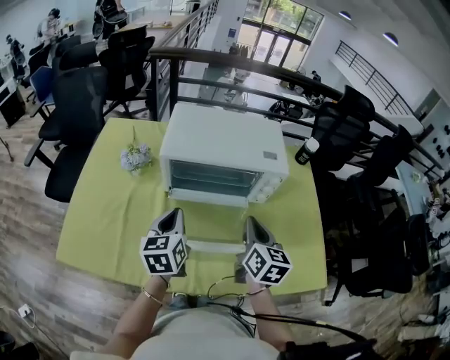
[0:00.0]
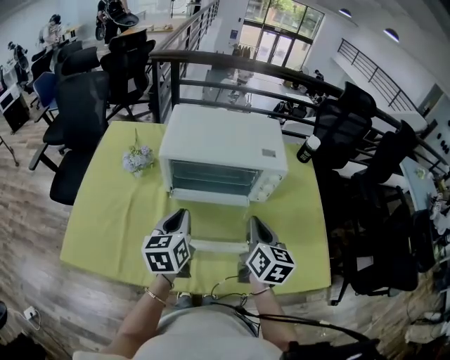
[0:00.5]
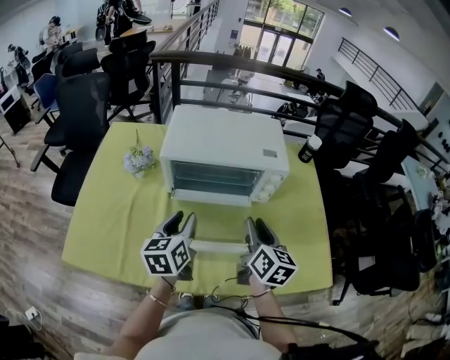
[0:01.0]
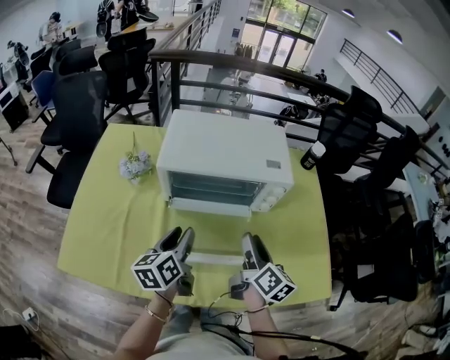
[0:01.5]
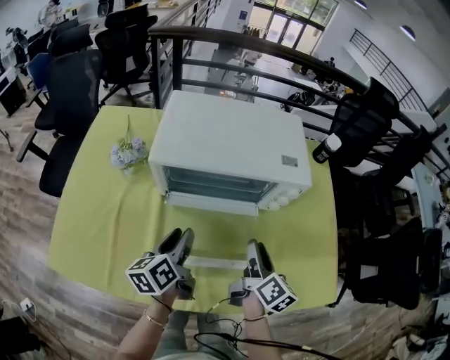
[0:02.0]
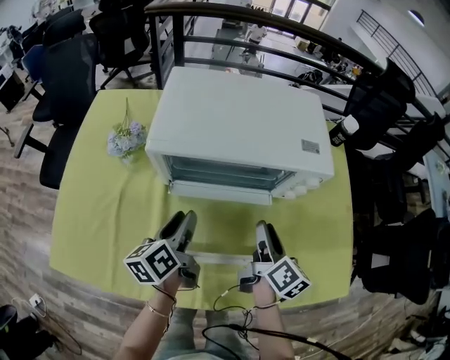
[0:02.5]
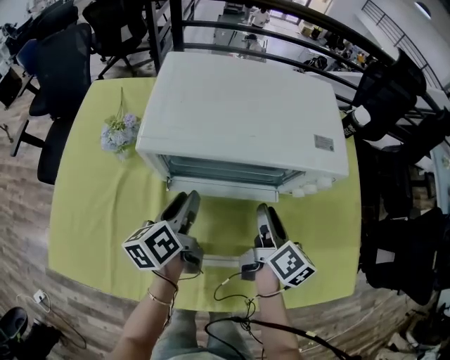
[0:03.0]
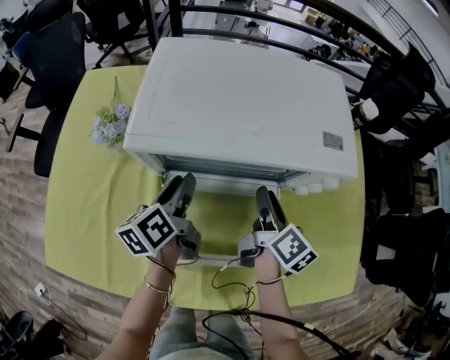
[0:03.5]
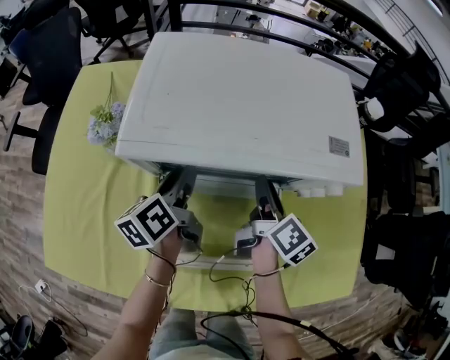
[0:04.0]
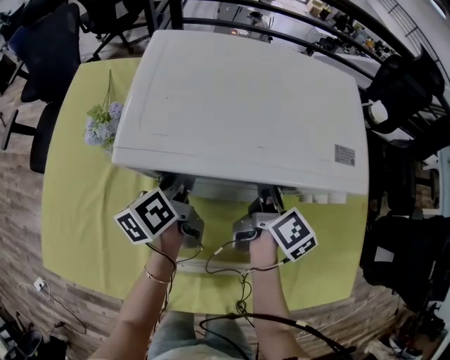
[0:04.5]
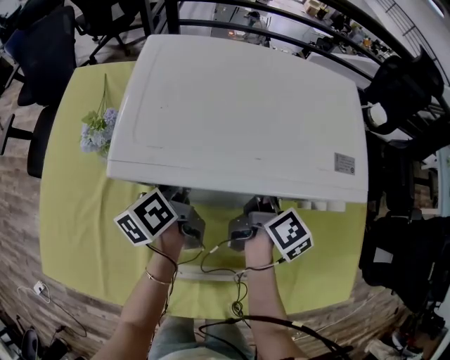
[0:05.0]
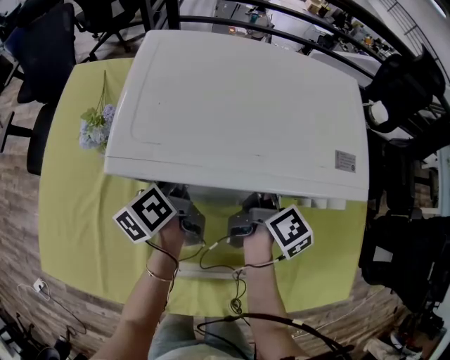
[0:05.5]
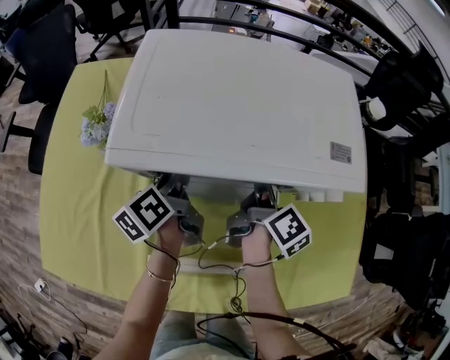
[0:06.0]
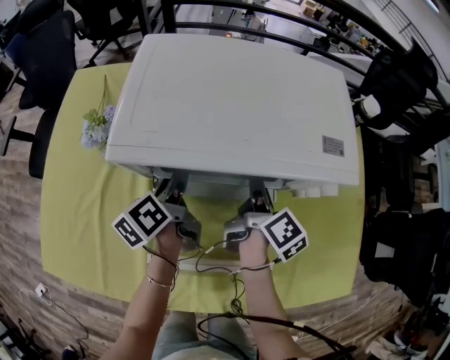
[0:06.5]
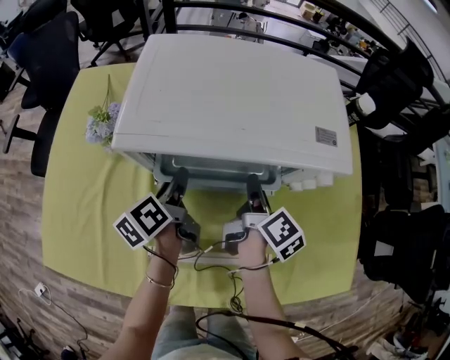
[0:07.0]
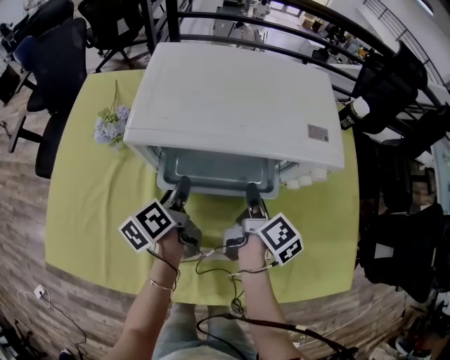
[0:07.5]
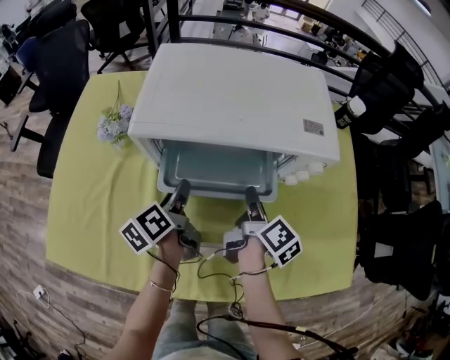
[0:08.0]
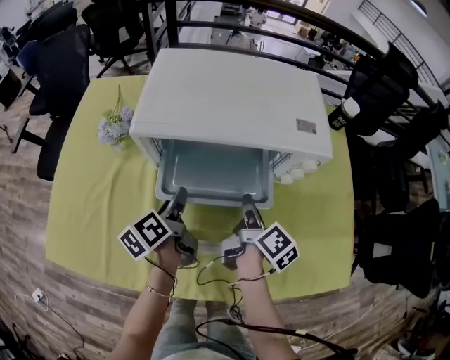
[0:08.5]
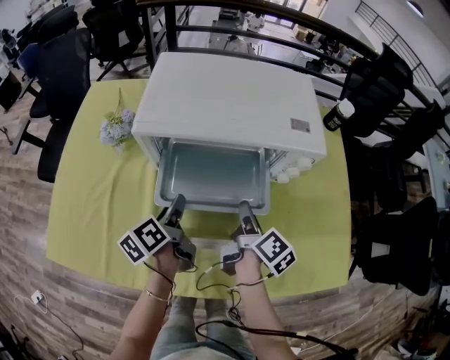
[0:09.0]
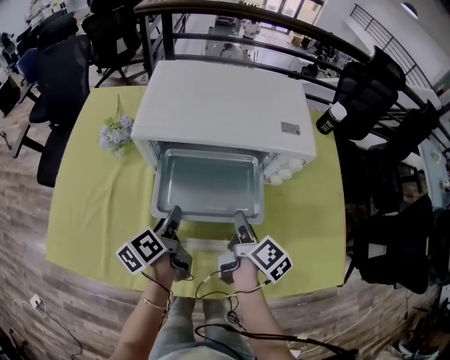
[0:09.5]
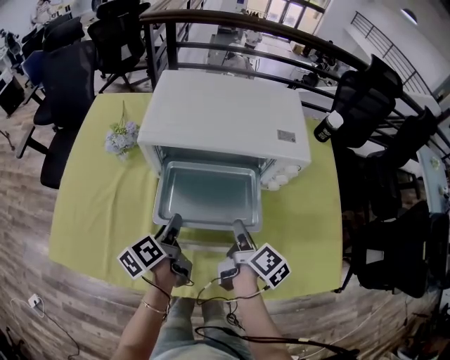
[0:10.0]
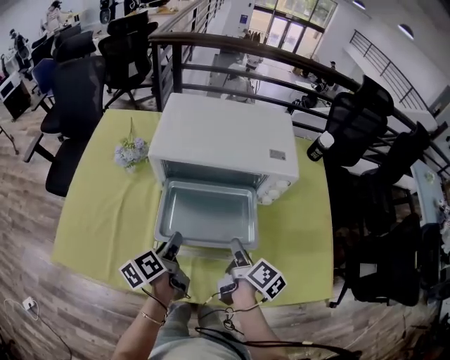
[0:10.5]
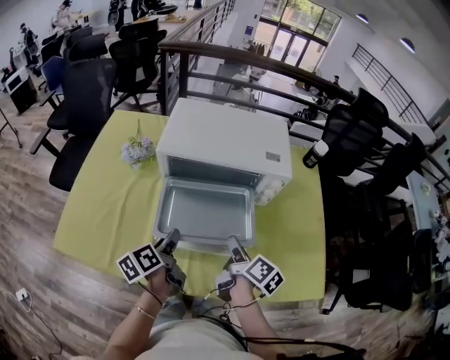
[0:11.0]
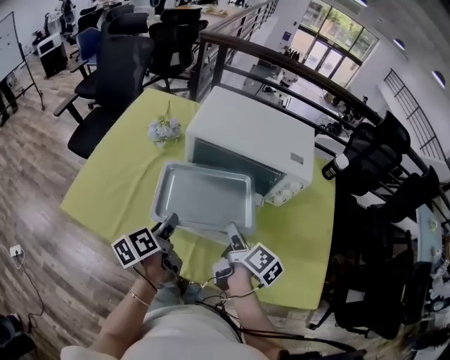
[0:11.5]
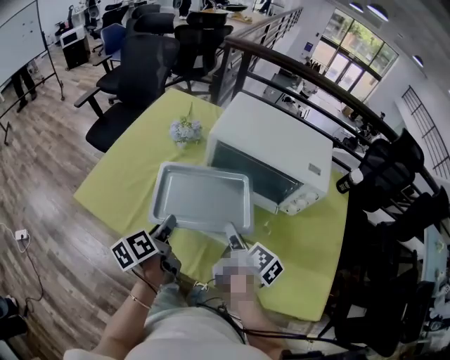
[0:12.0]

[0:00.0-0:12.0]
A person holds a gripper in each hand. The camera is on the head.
0:00.0 to 0:02.0: Both grippers travel together downward, about 10 cm. The right gripper swivels some 30 degrees, and opens its fingers, while the left gripper swivels roughly 30 degrees, and opens.
0:02.0 to 0:04.0: Both grippers move forward, about 15 cm.
0:04.0 to 0:06.0: The grippers stay close to where they were, moving slightly.
0:06.0 to 0:08.0: The two grippers go some 10 cm backward.
0:08.0 to 0:10.0: The grippers both shift backward by roughly 10 cm.
0:10.0 to 0:12.0: The right gripper moves to the left, upward and backward, some 15 cm, and turns by roughly 30 degrees; the left gripper is displaced backward, to the left and upward by some 20 cm.

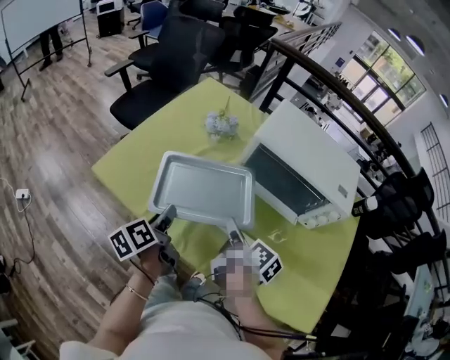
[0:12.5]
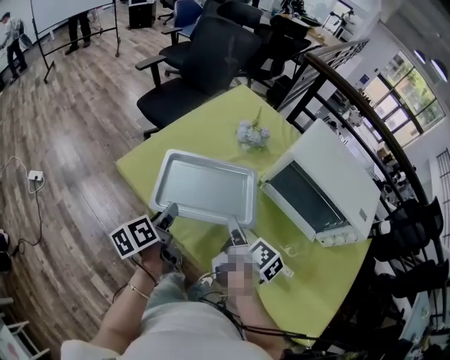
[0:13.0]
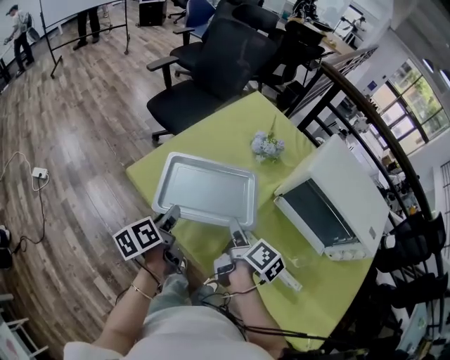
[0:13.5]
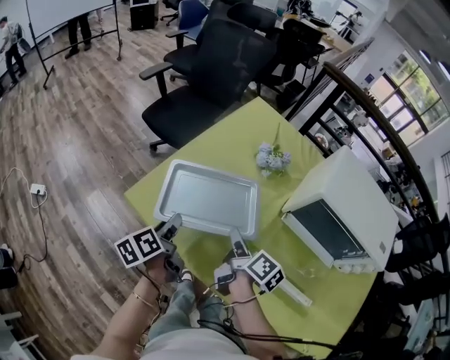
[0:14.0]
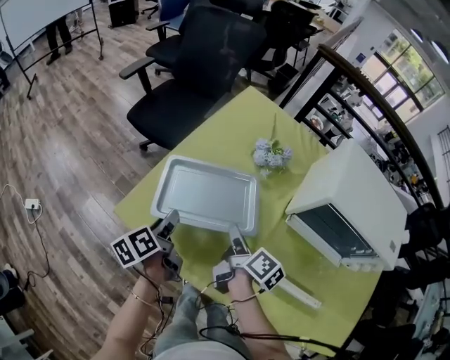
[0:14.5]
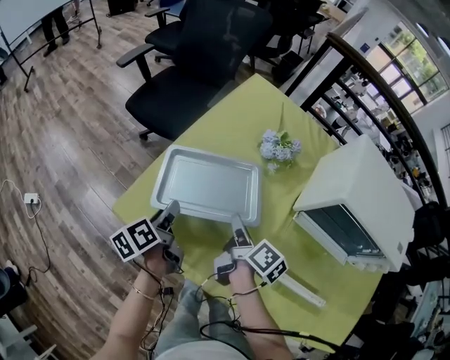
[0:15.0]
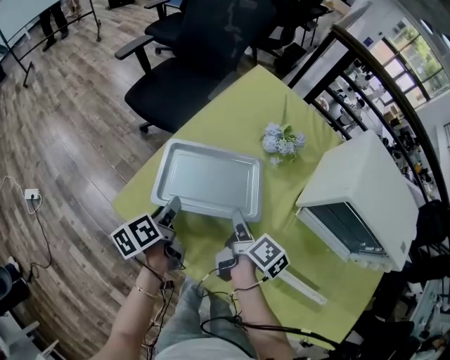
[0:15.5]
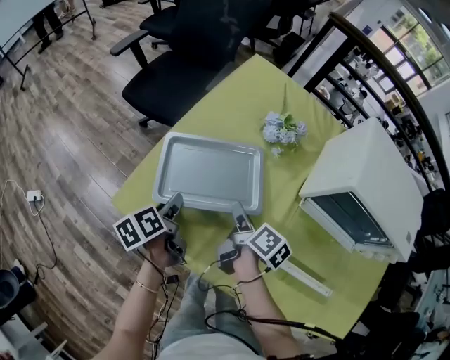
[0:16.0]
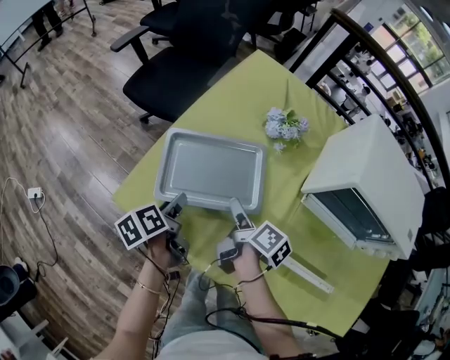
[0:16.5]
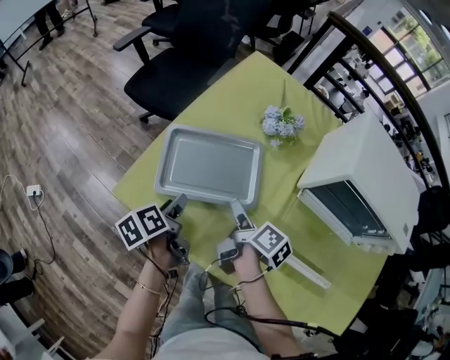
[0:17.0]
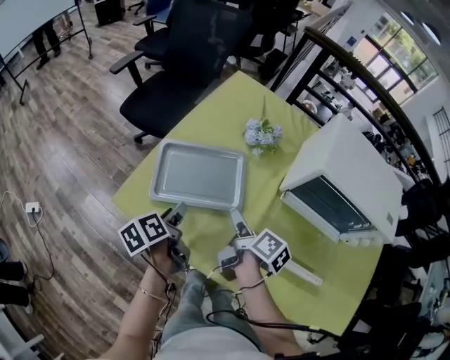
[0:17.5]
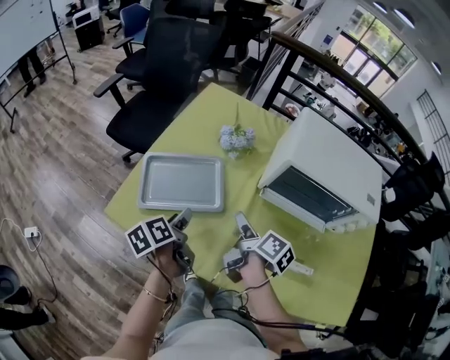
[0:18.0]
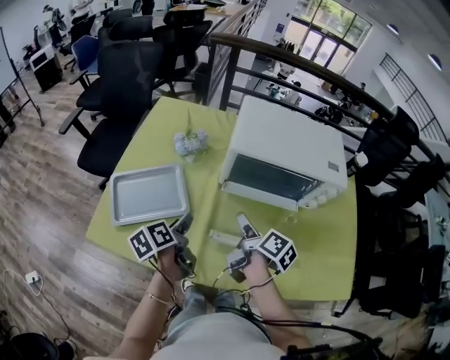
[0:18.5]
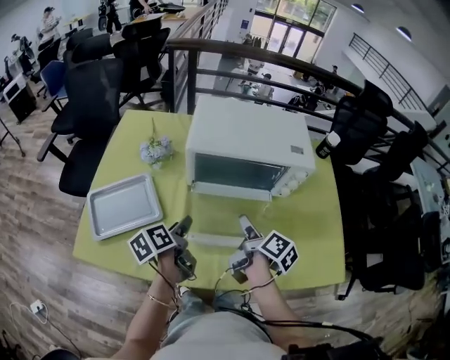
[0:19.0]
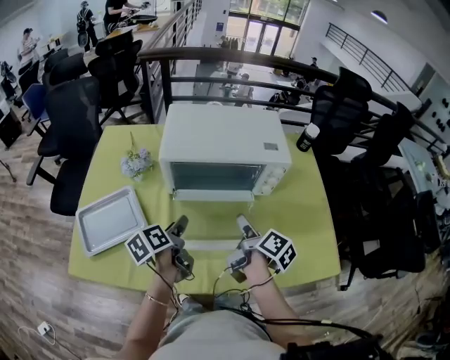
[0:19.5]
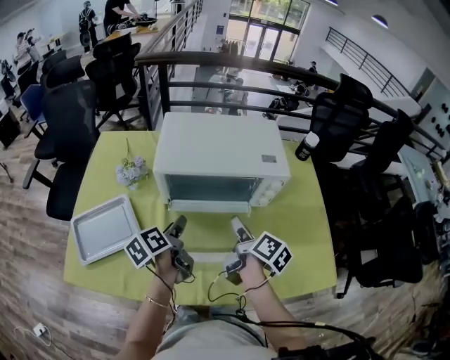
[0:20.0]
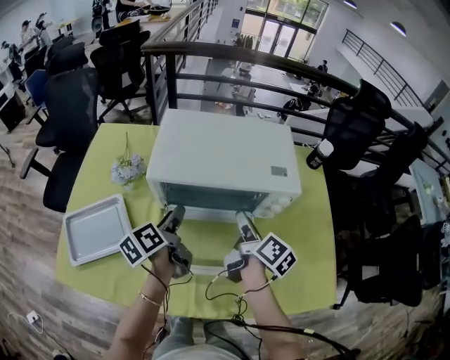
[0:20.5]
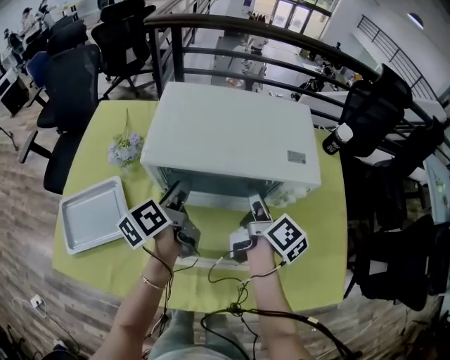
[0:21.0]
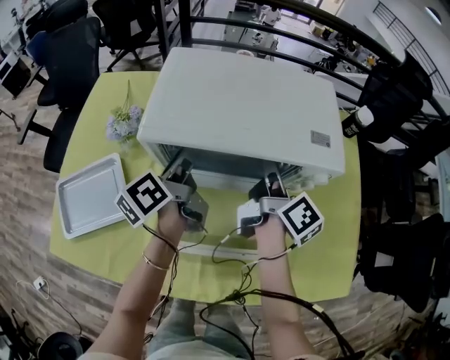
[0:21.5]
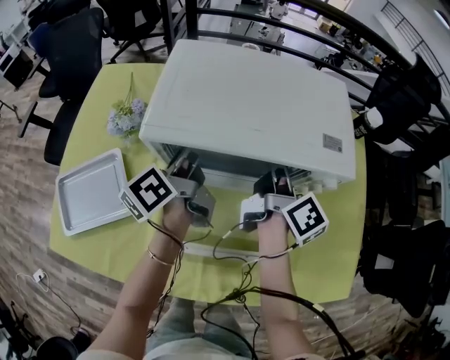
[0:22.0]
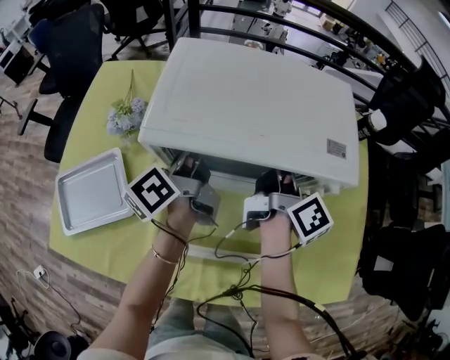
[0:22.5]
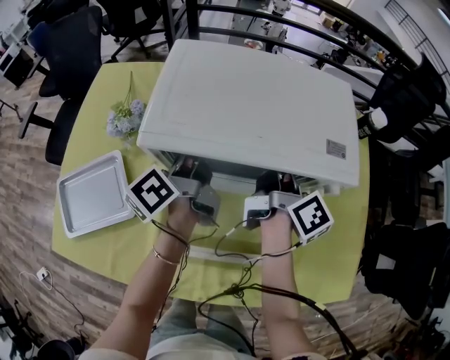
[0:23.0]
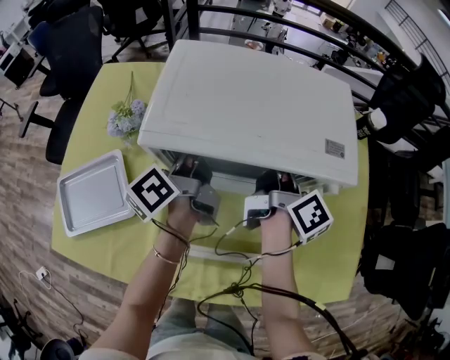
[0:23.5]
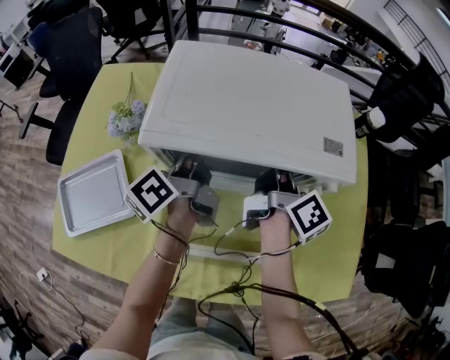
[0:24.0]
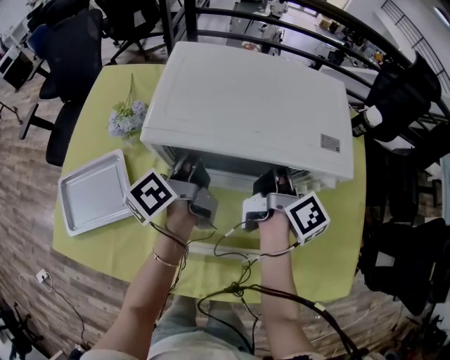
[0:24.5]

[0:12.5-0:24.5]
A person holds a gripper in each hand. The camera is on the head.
0:12.5 to 0:14.5: The two grippers go roughly 25 cm forward, to the left and downward.
0:14.5 to 0:16.5: Both grippers move downward, roughly 5 cm. The right gripper opens.
0:16.5 to 0:18.5: The left gripper heads to the right and upward, covering about 25 cm, and swivels roughly 20 degrees. Meanwhile the right gripper is displaced to the right, upward and backward by roughly 30 cm, and rotates approximately 20 degrees.
0:18.5 to 0:20.5: Both grippers travel together to the right and forward, roughly 20 cm.
0:20.5 to 0:22.5: The grippers both shift forward by approximately 10 cm. The right gripper closes, while the left gripper turns by approximately 20 degrees.
0:22.5 to 0:24.5: The grippers stay close to where they were, moving slightly.

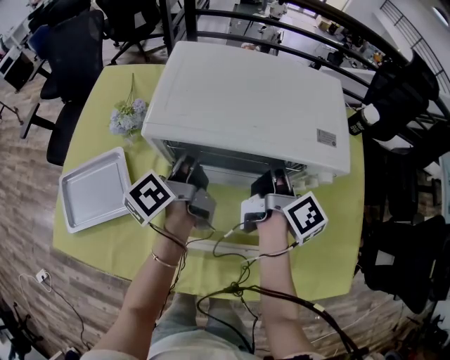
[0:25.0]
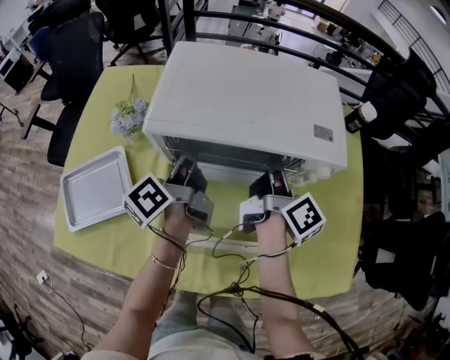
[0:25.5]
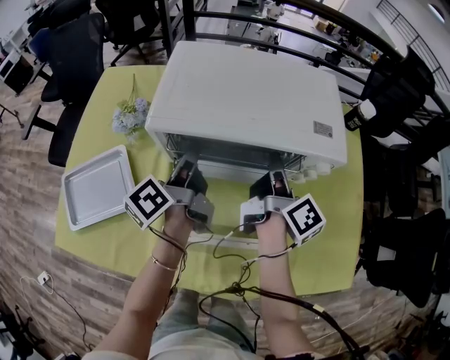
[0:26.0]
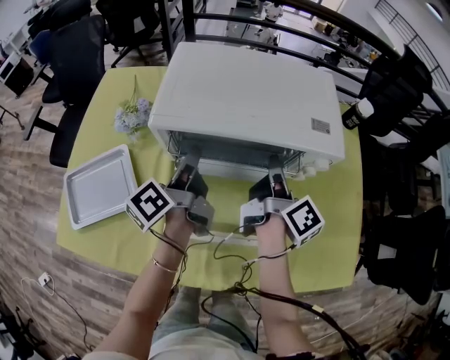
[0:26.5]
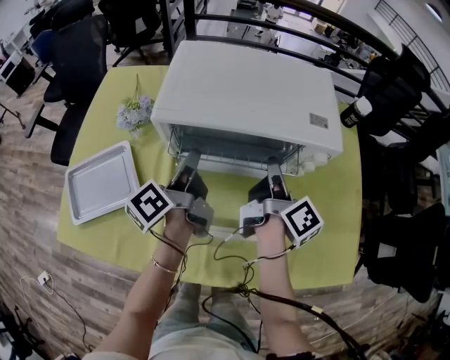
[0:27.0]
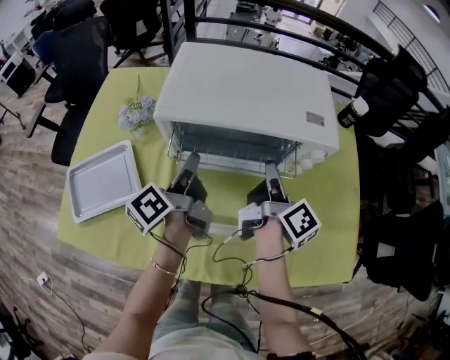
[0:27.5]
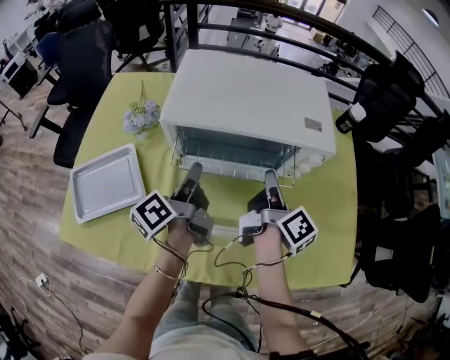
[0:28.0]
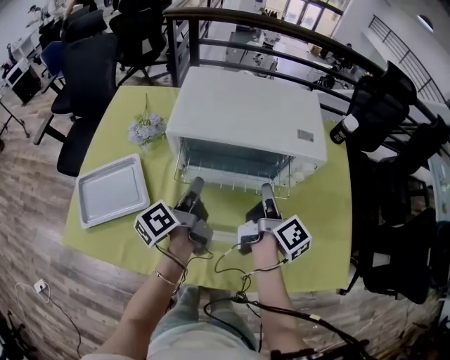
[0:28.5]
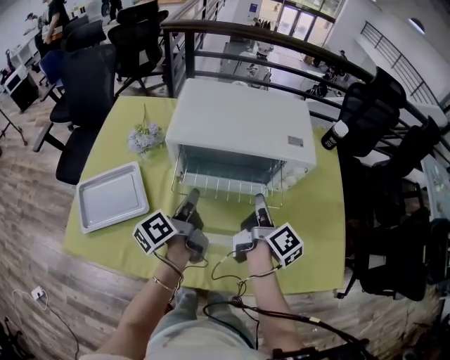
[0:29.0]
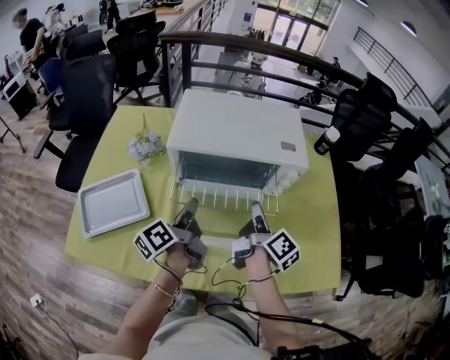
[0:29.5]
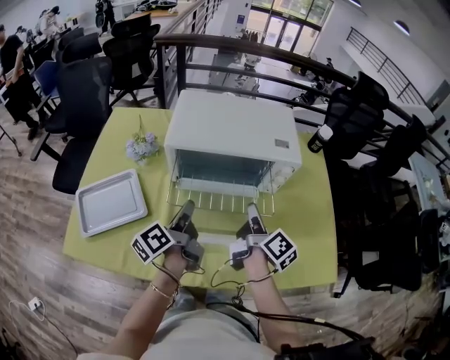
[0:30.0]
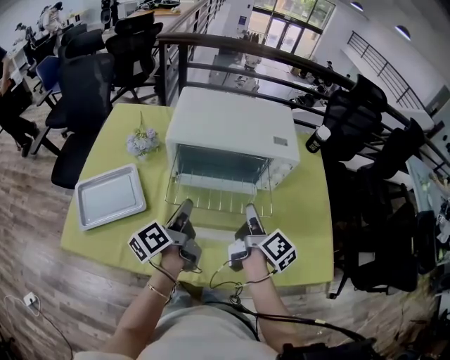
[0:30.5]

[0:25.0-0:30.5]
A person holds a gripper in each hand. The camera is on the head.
0:25.0 to 0:27.0: The grippers both shift backward by approximately 5 cm.
0:27.0 to 0:28.5: The left gripper shifts by some 5 cm.
0:28.5 to 0:30.5: The two grippers go approximately 10 cm backward.
